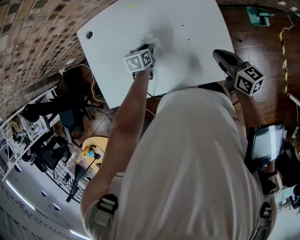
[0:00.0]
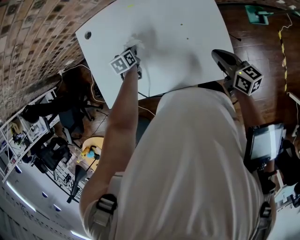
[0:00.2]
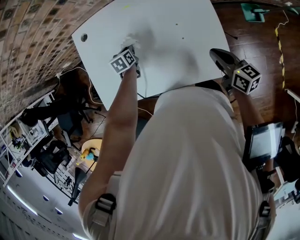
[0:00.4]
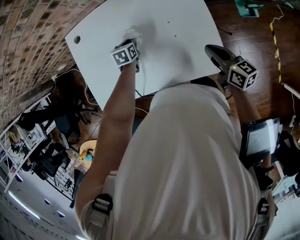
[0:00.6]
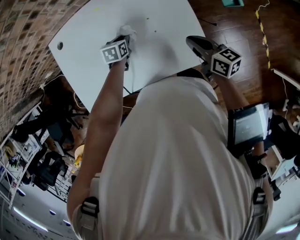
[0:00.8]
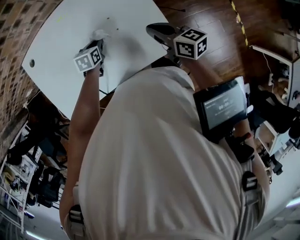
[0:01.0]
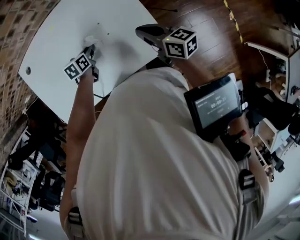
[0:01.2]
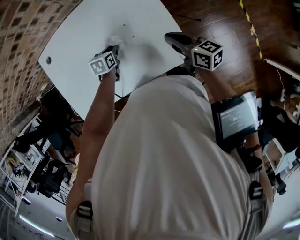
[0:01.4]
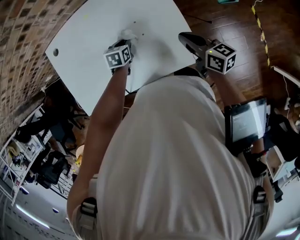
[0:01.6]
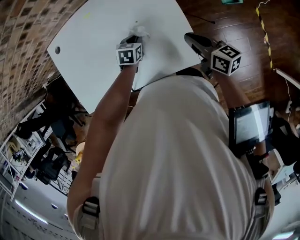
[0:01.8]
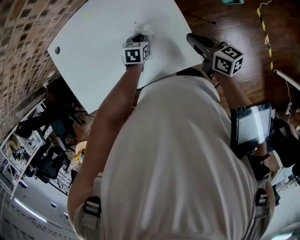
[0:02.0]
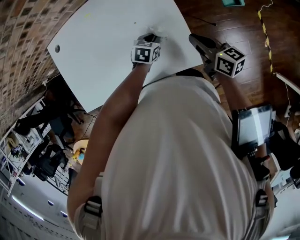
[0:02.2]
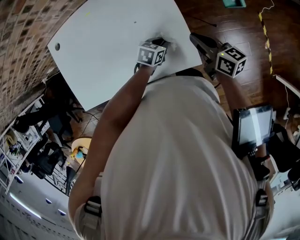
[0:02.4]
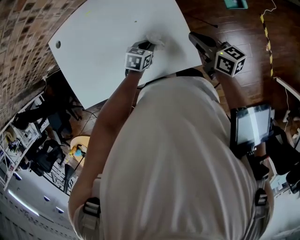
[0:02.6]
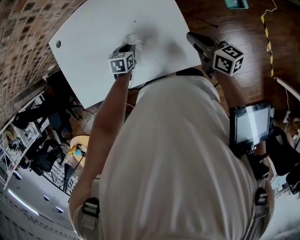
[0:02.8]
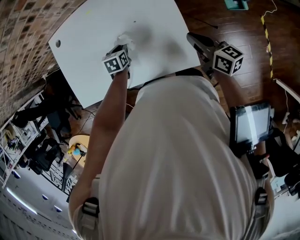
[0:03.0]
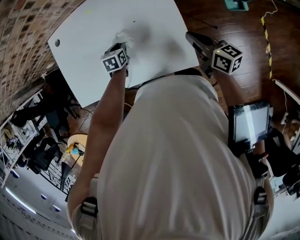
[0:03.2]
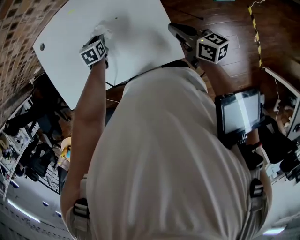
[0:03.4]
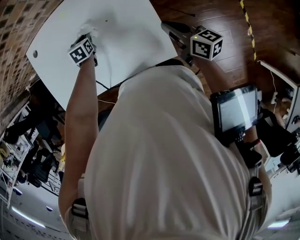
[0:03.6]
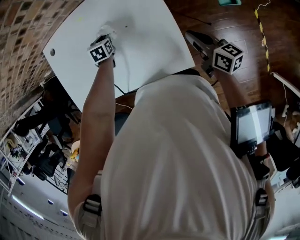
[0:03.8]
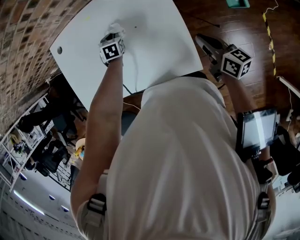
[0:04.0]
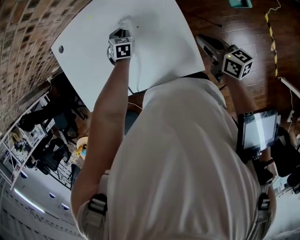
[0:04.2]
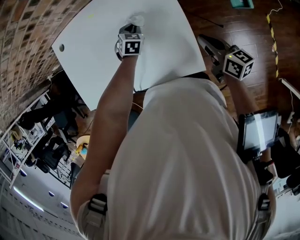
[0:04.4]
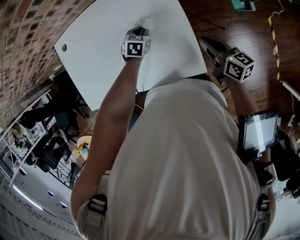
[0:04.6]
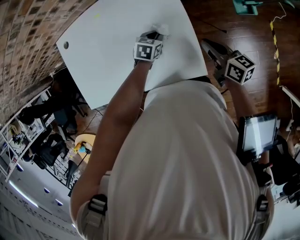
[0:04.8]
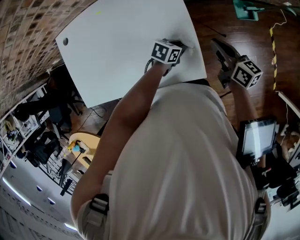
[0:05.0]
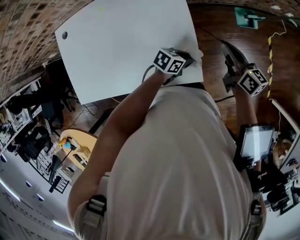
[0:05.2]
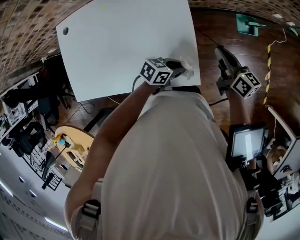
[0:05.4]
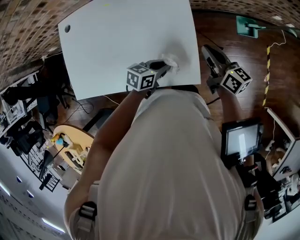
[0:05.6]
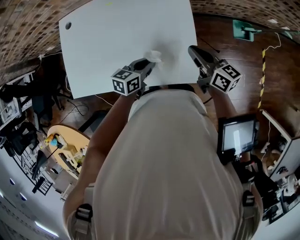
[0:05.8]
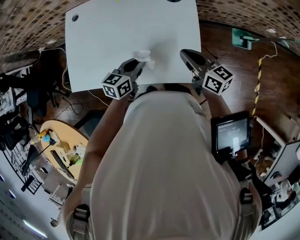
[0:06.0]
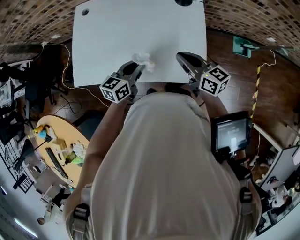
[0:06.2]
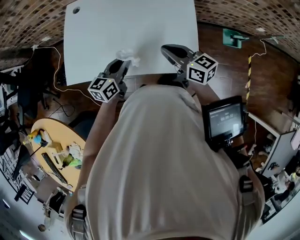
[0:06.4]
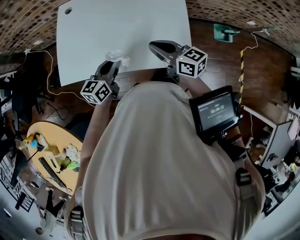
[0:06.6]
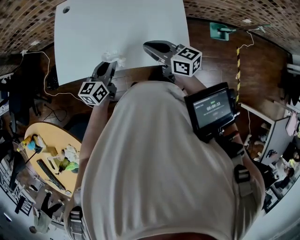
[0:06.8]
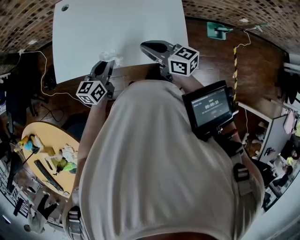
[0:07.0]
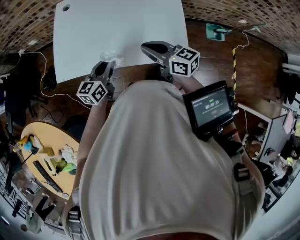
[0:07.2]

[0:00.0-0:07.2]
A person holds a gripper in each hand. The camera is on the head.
0.0 to 1.4 s: The left gripper heads to the right, covering about 10 cm.
1.4 to 2.8 s: The left gripper reaches roughly 20 cm to the right, then returns. The right gripper goes approximately 5 cm to the right.
2.8 to 4.4 s: The left gripper shifts approximately 10 cm forward and to the right.
4.4 to 5.8 s: The right gripper shifts by about 10 cm, while the left gripper ends up roughly 20 cm from where it was, and turns by some 50 degrees.
5.8 to 7.2 s: The two grippers go approximately 20 cm to the left. The left gripper rotates approximately 30 degrees. The right gripper turns by roughly 20 degrees.

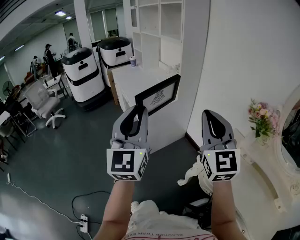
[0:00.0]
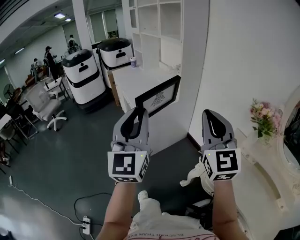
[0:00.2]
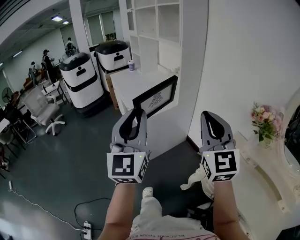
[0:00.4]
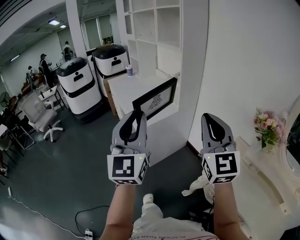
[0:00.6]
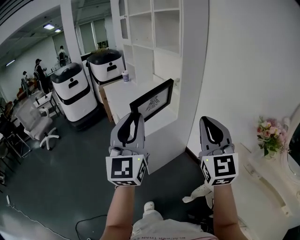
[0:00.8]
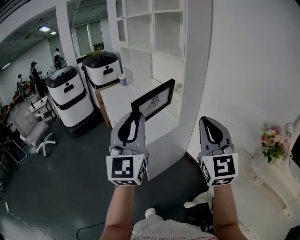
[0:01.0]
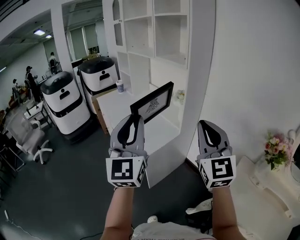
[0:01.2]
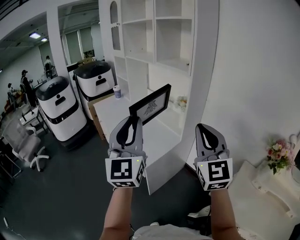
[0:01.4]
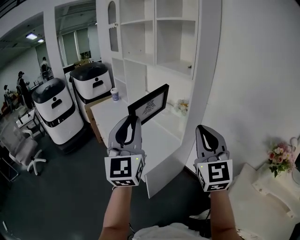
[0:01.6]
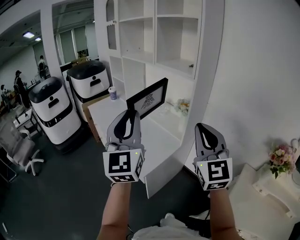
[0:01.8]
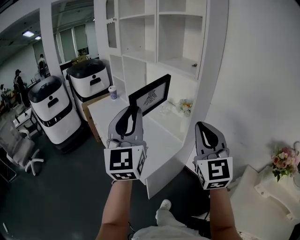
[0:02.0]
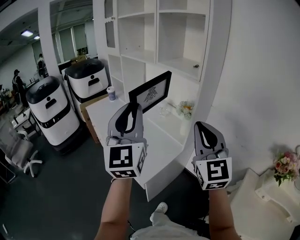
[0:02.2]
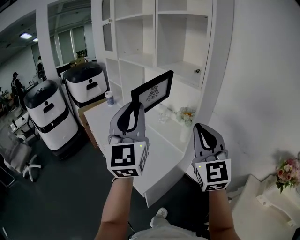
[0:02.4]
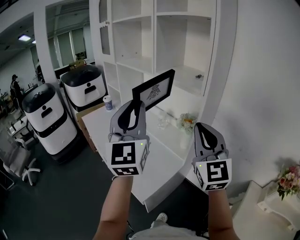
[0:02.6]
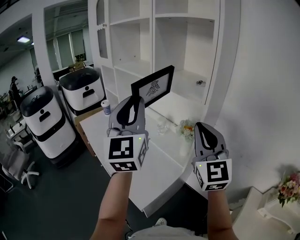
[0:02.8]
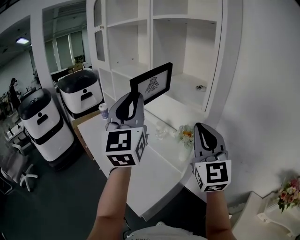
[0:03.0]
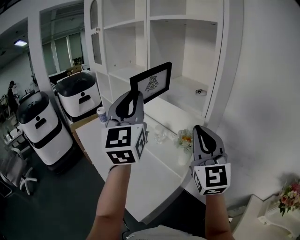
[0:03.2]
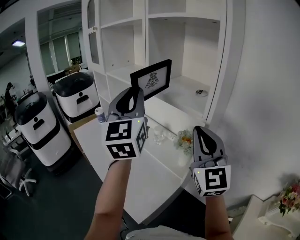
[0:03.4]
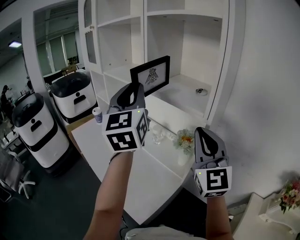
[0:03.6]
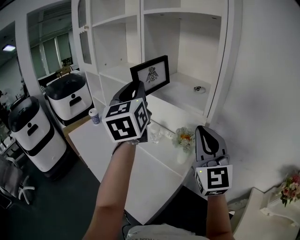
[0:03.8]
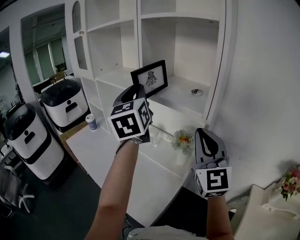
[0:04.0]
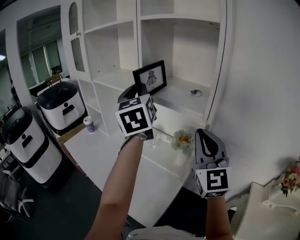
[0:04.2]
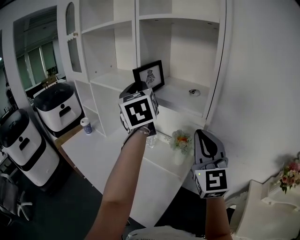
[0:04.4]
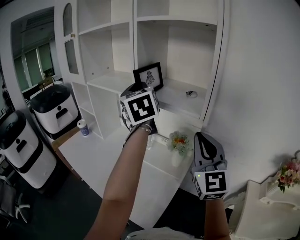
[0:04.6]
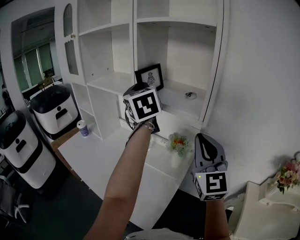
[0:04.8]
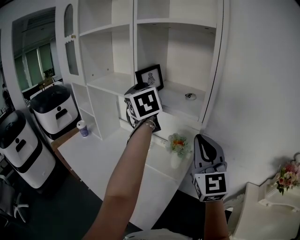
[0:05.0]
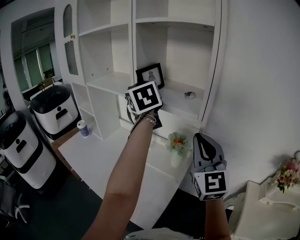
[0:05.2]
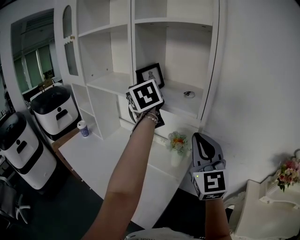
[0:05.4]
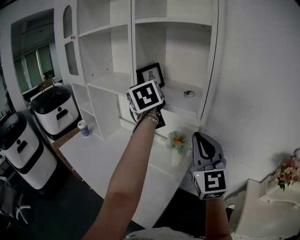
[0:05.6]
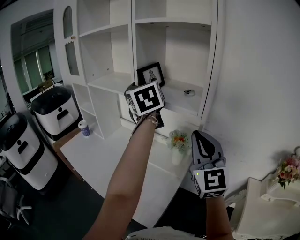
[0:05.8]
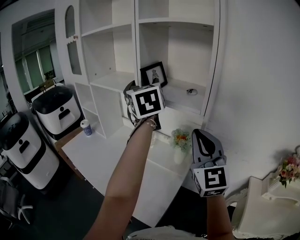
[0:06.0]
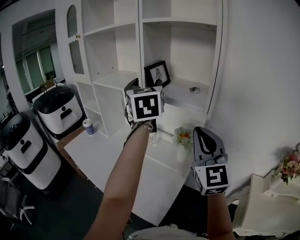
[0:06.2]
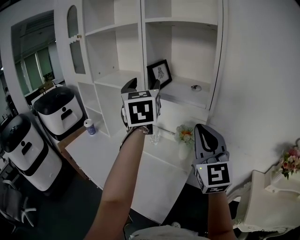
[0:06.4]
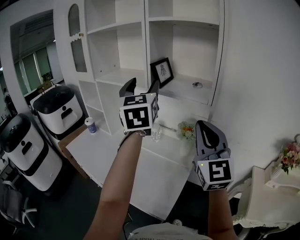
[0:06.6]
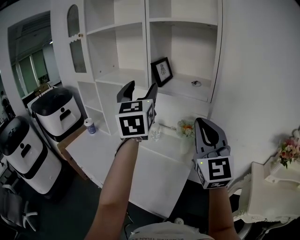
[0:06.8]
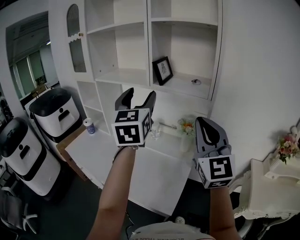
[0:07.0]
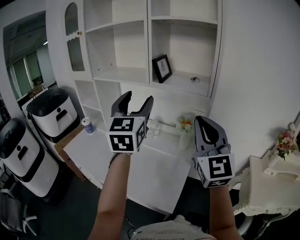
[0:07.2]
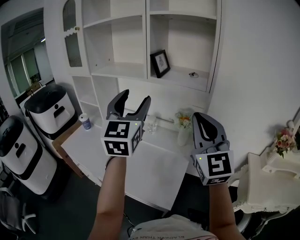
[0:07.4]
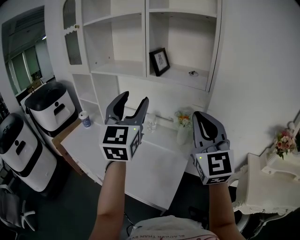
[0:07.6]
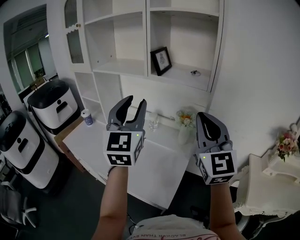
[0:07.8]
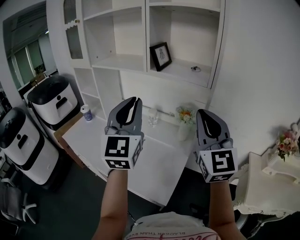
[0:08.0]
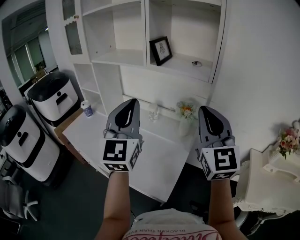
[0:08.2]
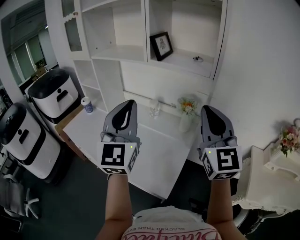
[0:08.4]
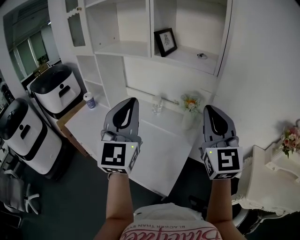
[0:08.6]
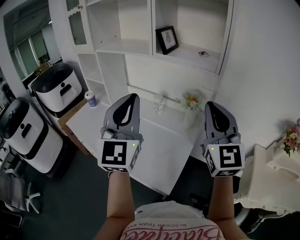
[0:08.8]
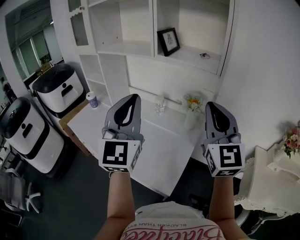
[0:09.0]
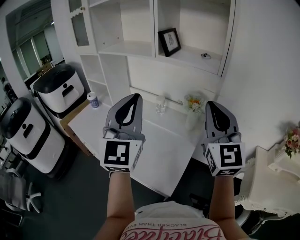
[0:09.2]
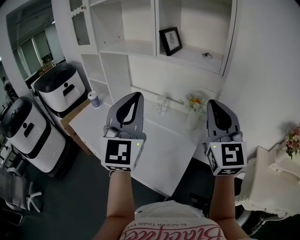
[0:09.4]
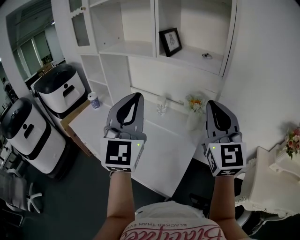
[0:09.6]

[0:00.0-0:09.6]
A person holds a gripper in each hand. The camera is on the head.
0.0 to 1.6 s: Both grippers travel together forward, approximately 35 cm.
1.6 to 3.2 s: Both grippers travel together forward, approximately 30 cm.
3.2 to 4.8 s: The left gripper goes about 15 cm forward, and turns by approximately 30 degrees.
4.8 to 6.4 s: The right gripper moves to the left, some 5 cm. Meanwhile the left gripper is displaced backward by approximately 5 cm, and opens its fingers.
6.4 to 8.0 s: The left gripper is displaced backward and downward by approximately 15 cm, and closes its fingers.
8.0 to 9.6 s: The grippers move only a little.

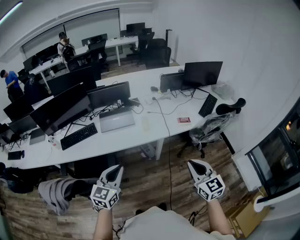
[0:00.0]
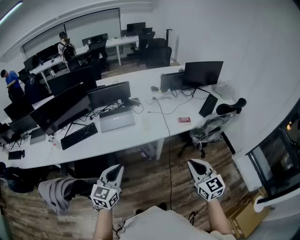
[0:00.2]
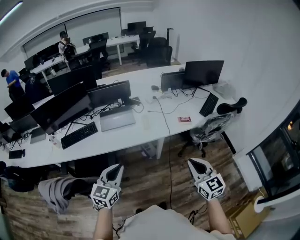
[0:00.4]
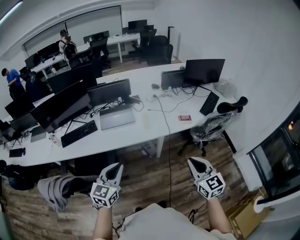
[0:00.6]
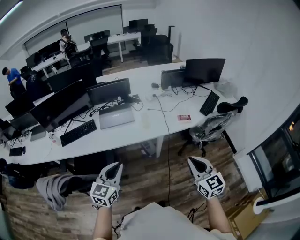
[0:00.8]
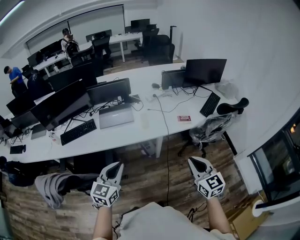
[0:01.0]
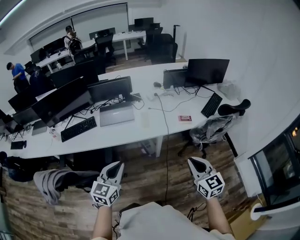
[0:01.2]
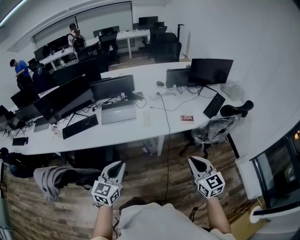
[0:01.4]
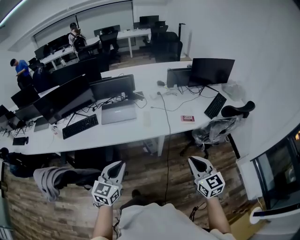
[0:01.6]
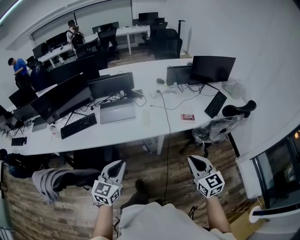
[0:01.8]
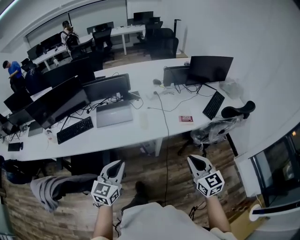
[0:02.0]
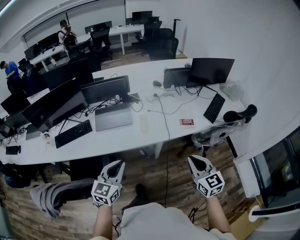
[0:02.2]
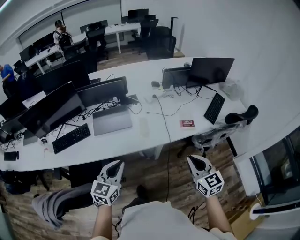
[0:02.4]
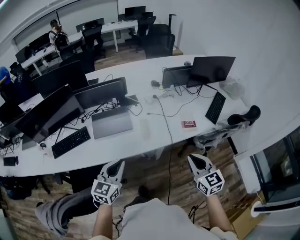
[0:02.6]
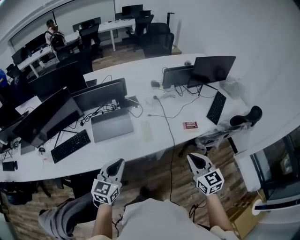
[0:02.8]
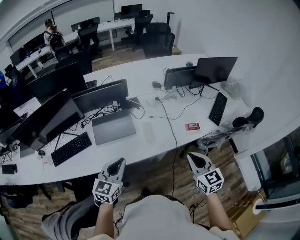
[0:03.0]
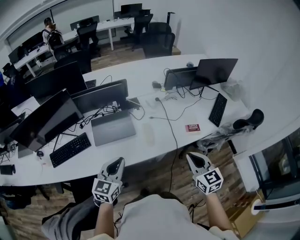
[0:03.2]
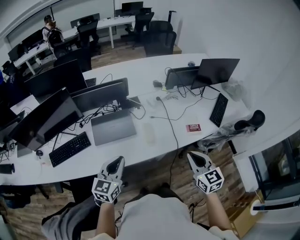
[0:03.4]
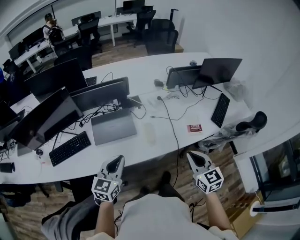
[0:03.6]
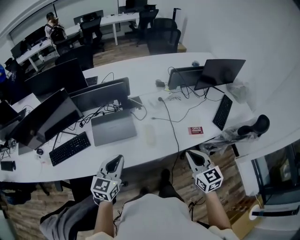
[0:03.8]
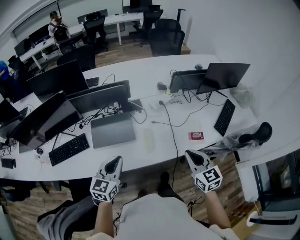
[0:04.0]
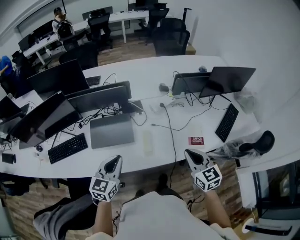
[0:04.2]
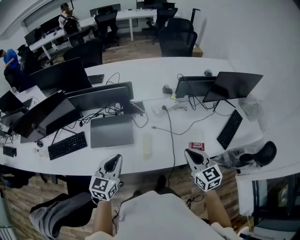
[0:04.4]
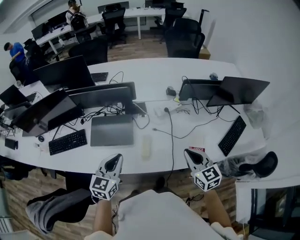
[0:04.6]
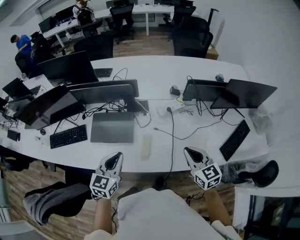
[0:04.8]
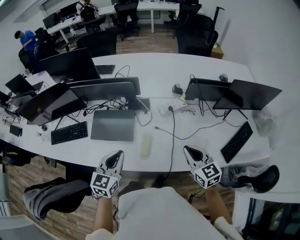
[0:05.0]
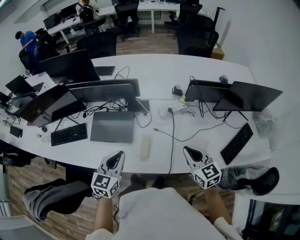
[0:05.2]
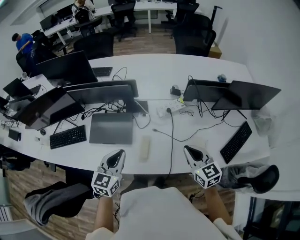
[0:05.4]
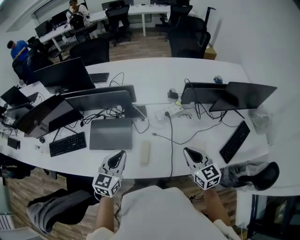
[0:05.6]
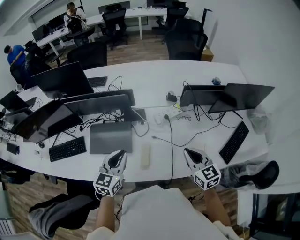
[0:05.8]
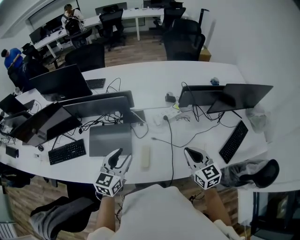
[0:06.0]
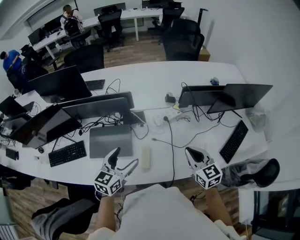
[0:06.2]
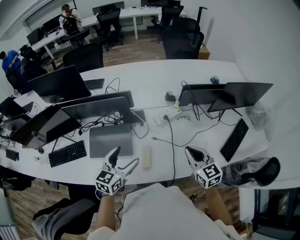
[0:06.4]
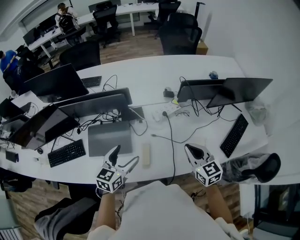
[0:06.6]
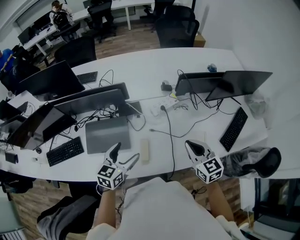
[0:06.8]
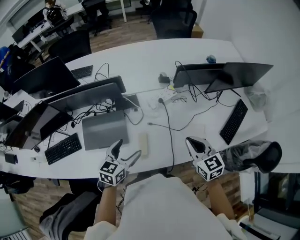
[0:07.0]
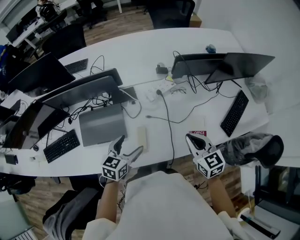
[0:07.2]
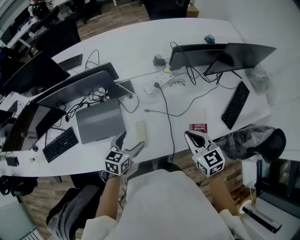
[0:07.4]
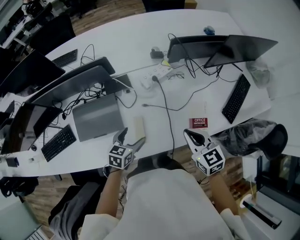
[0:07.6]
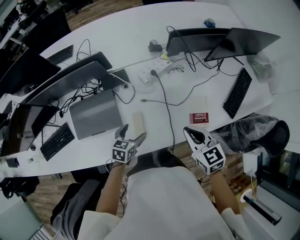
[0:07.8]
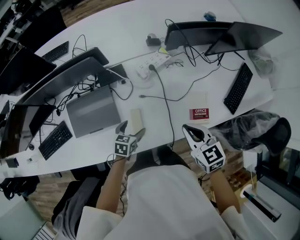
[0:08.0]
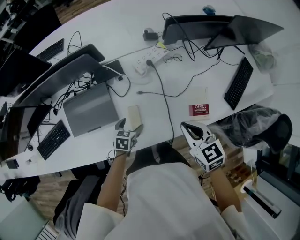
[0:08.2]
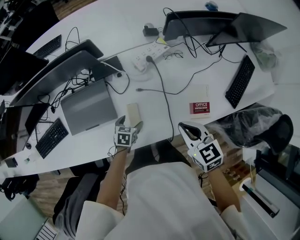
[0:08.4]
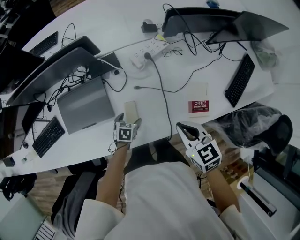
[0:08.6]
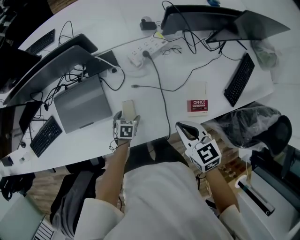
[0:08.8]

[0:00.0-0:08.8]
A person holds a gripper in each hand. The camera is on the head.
0.0 to 1.4 s: Both grippers move to the right, some 10 cm.
1.4 to 3.0 s: The left gripper heads forward, covering approximately 30 cm; the right gripper heads forward and to the left, covering some 30 cm.
3.0 to 4.4 s: The grippers both shift forward by roughly 20 cm.
4.4 to 5.8 s: The left gripper goes approximately 10 cm forward and to the right; the right gripper heads forward, covering approximately 10 cm.
5.8 to 7.4 s: The right gripper is displaced downward by roughly 5 cm. Meanwhile the left gripper shifts roughly 15 cm downward and to the right, changes its angle by some 30 degrees, and opens.
7.4 to 8.8 s: The right gripper moves downward, roughly 10 cm. The left gripper is displaced downward by about 30 cm, and angles its fingers downward, by some 30 degrees.
